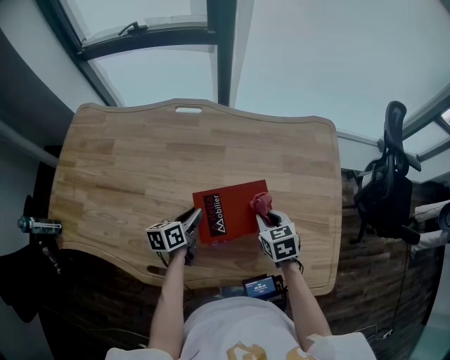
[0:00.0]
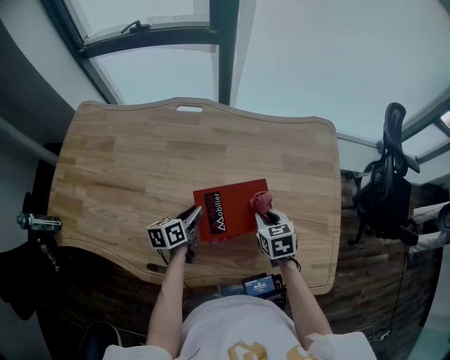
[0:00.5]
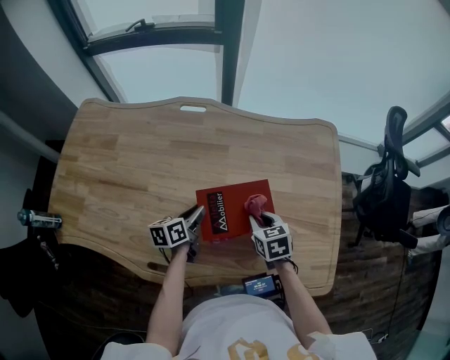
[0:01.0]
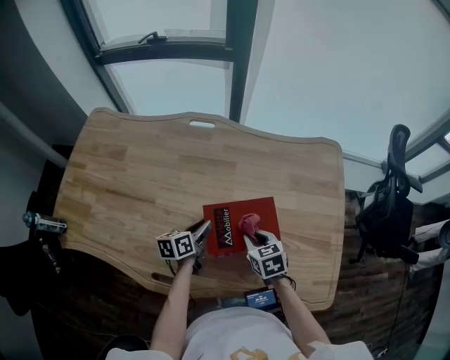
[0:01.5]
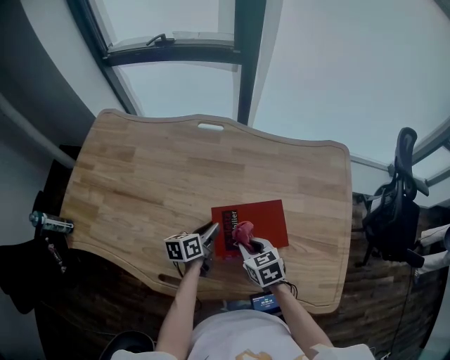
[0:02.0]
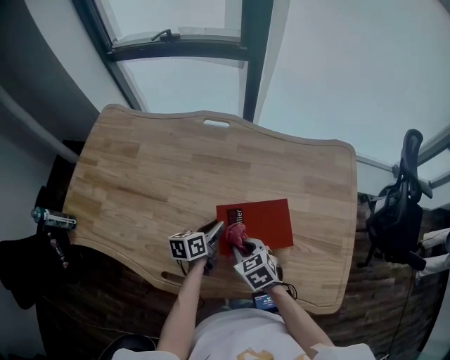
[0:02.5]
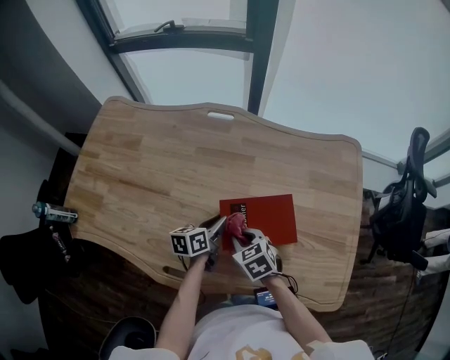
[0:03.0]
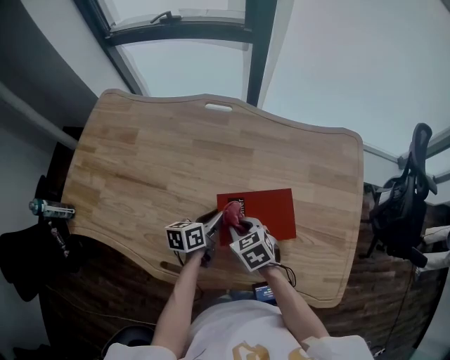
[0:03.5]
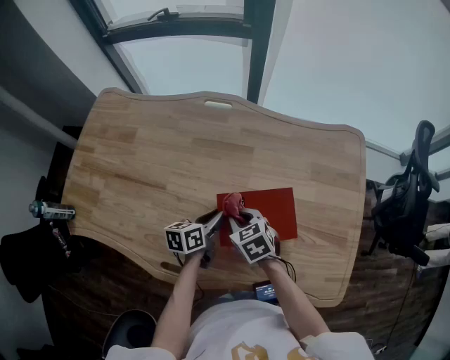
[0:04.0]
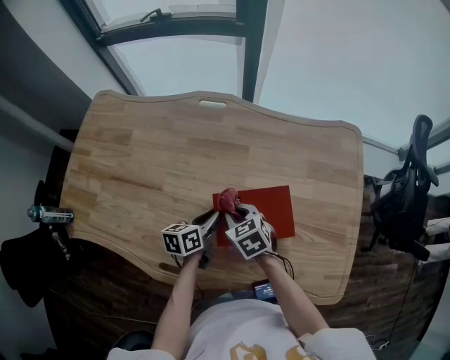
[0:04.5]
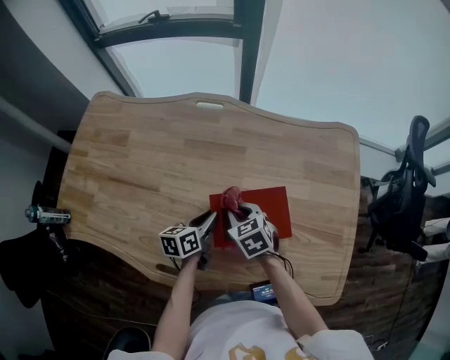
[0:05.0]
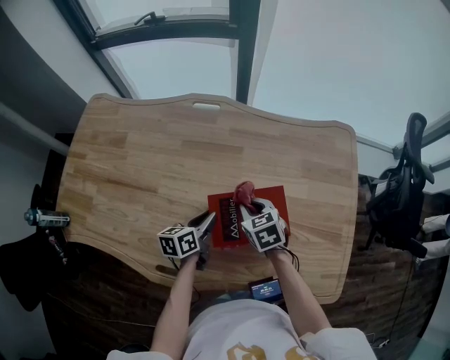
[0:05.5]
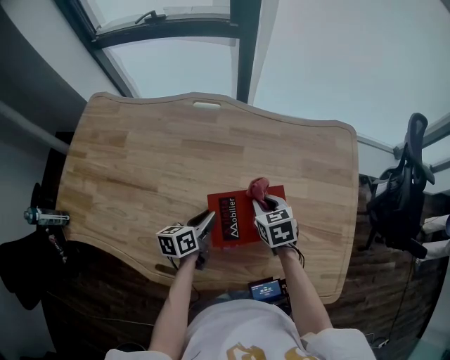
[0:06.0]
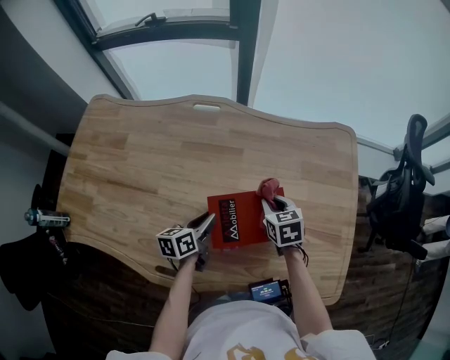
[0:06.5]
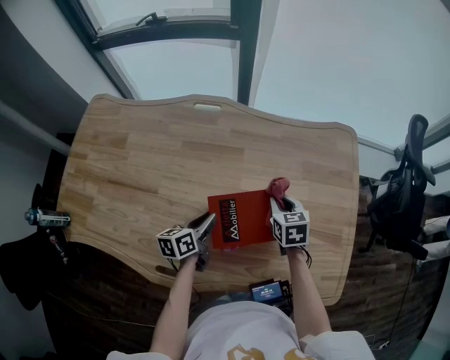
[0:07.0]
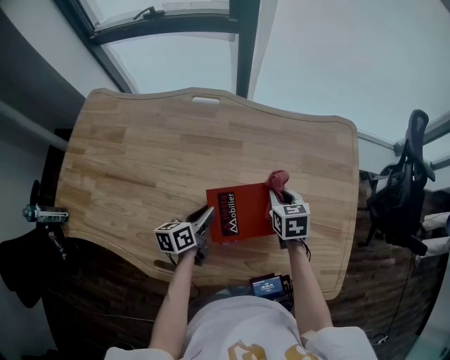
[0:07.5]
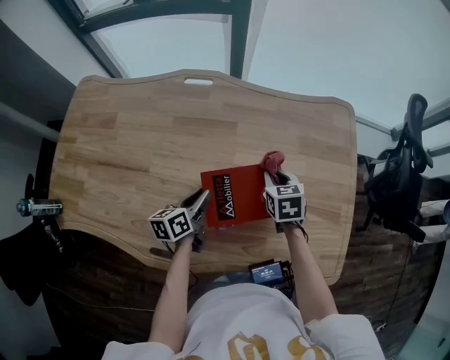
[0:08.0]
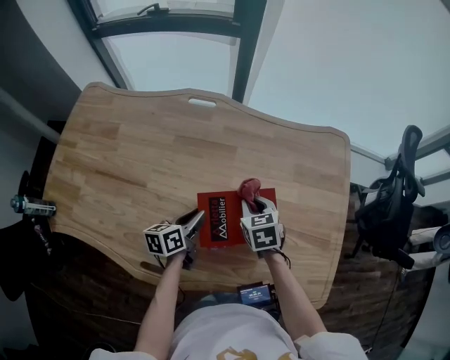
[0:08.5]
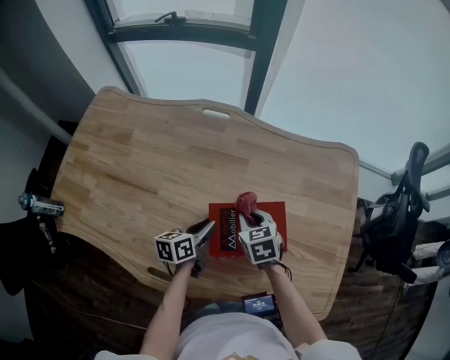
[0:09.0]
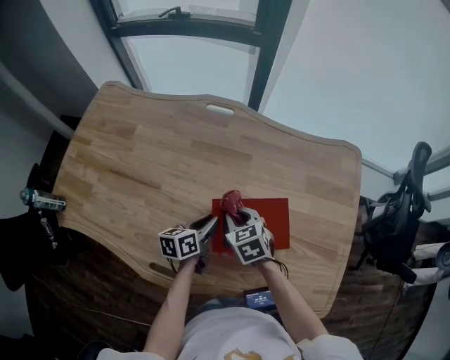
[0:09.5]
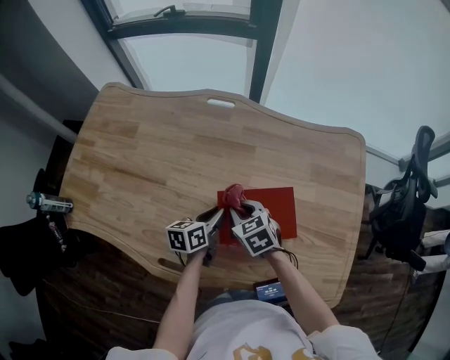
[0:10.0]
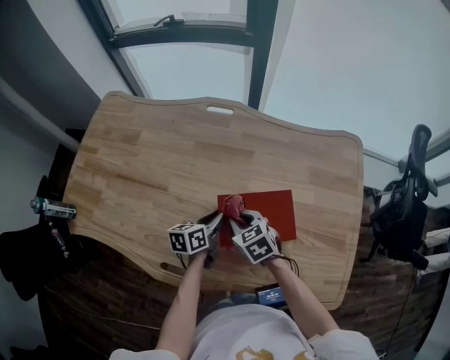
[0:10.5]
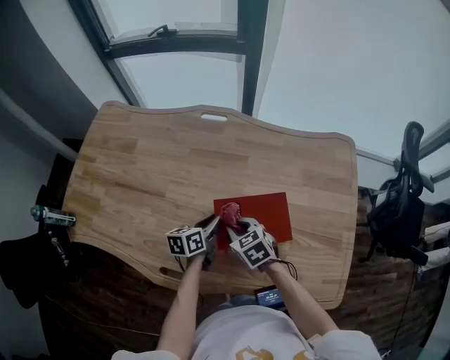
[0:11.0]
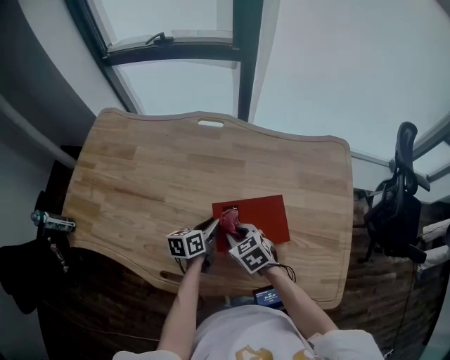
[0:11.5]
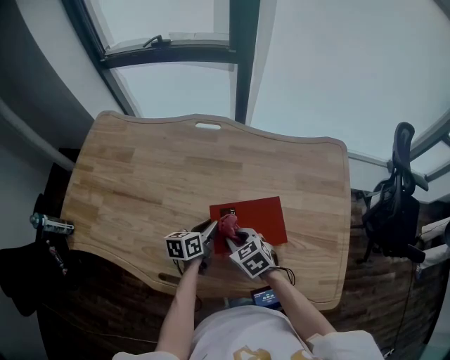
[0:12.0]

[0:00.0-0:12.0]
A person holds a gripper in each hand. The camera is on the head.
0:00.0 to 0:02.0: The right gripper shifts about 10 cm to the left.
0:02.0 to 0:04.0: The right gripper travels forward and to the left by approximately 5 cm.
0:04.0 to 0:06.0: The right gripper is displaced to the right and forward by about 10 cm.
0:06.0 to 0:08.0: The right gripper heads to the right, covering some 5 cm.
0:08.0 to 0:10.0: The right gripper shifts approximately 15 cm to the left, and rotates about 30 degrees.
0:10.0 to 0:12.0: The right gripper moves backward, some 5 cm.

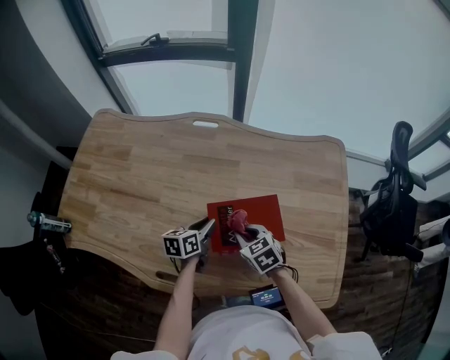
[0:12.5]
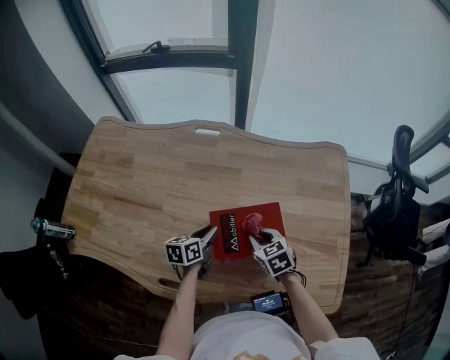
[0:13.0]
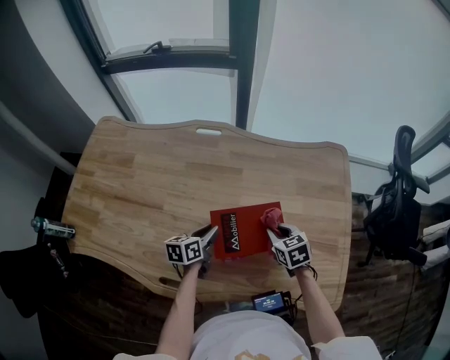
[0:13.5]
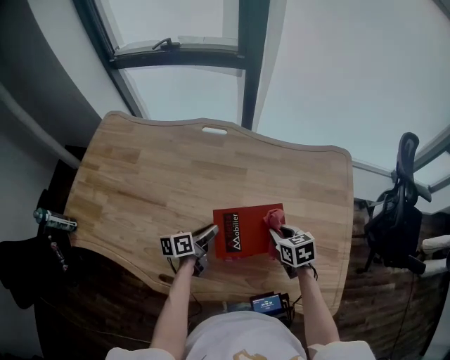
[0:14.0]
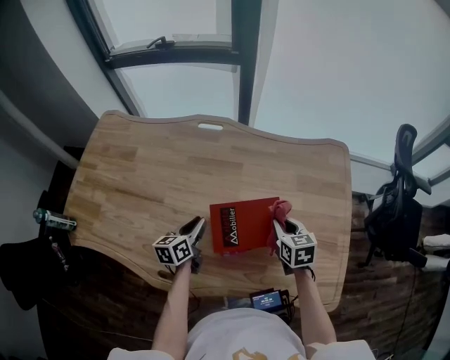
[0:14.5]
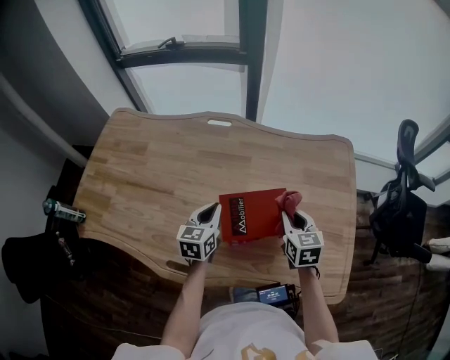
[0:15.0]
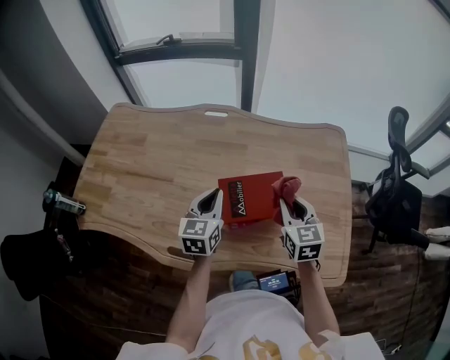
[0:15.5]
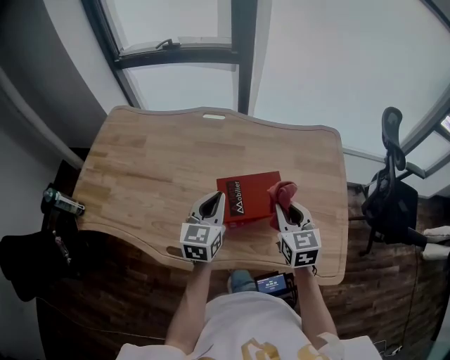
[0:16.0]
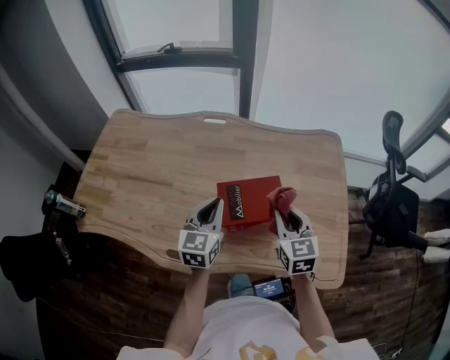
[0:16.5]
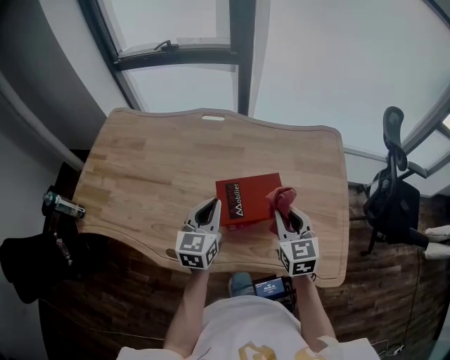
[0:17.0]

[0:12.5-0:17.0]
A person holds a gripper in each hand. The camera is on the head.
0:12.5 to 0:14.5: The right gripper shifts approximately 15 cm to the right, and changes its angle by about 30 degrees.
0:14.5 to 0:17.0: Both grippers travel together upward and backward, some 15 cm. The left gripper turns by roughly 30 degrees. The right gripper swivels roughly 20 degrees.

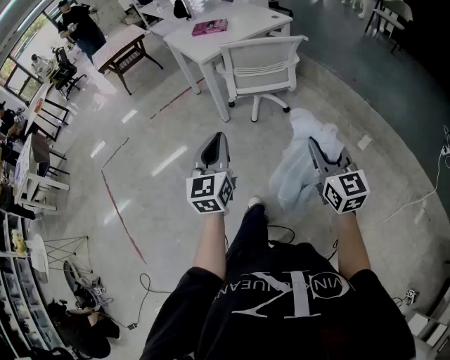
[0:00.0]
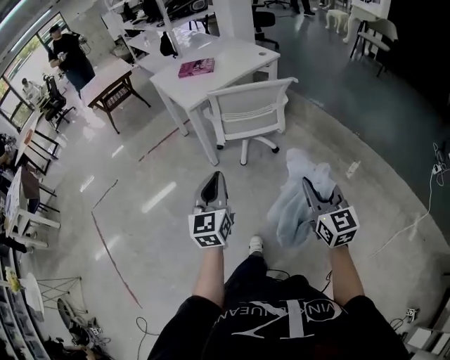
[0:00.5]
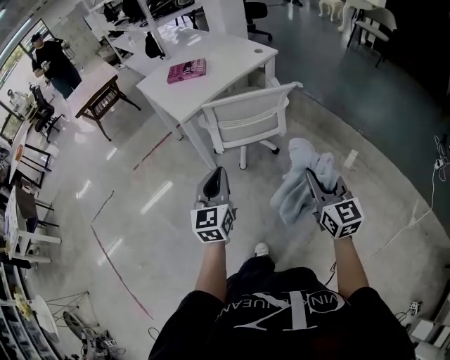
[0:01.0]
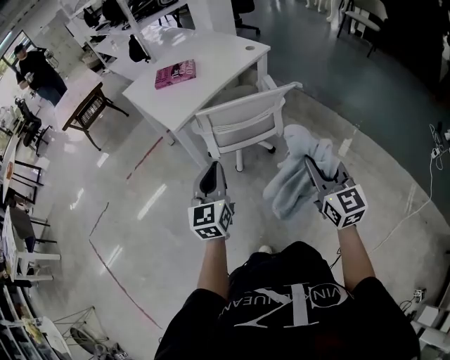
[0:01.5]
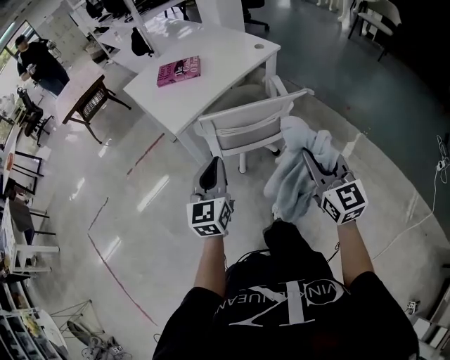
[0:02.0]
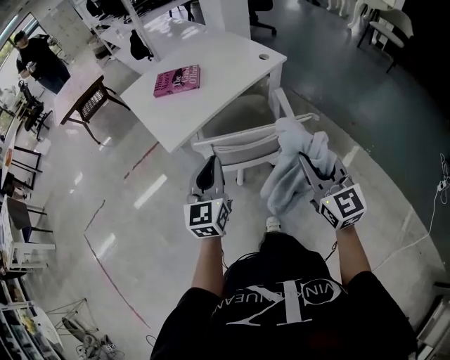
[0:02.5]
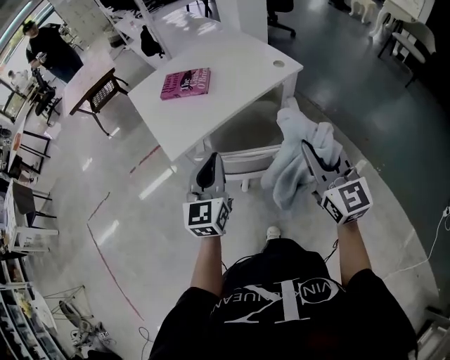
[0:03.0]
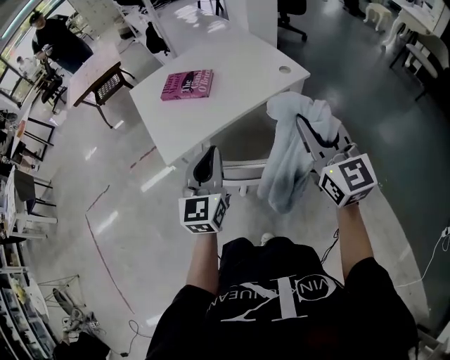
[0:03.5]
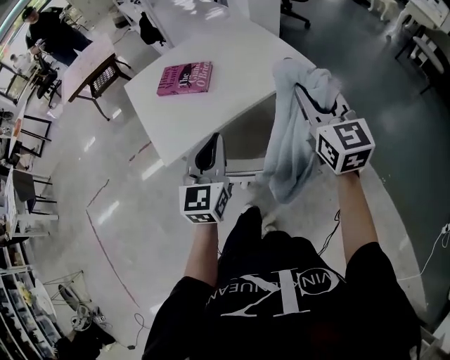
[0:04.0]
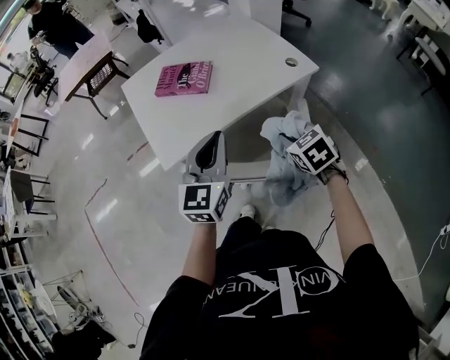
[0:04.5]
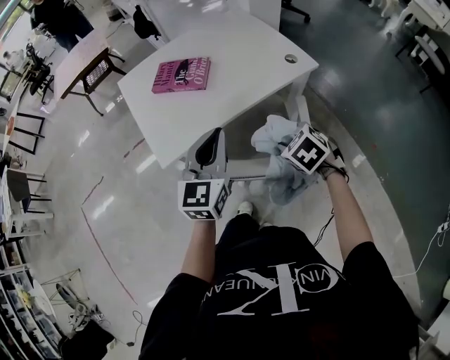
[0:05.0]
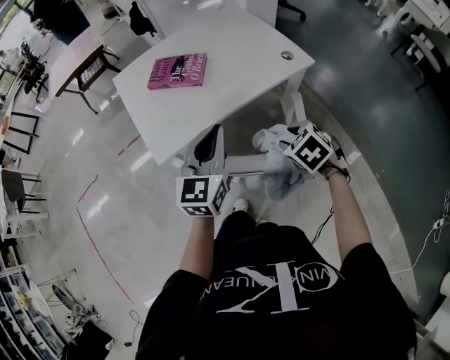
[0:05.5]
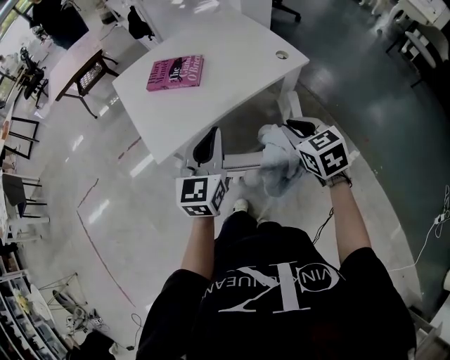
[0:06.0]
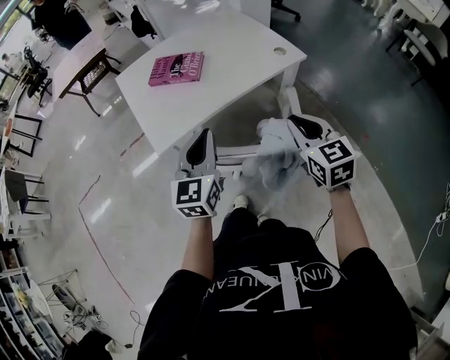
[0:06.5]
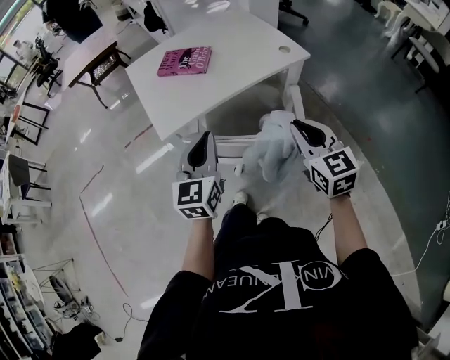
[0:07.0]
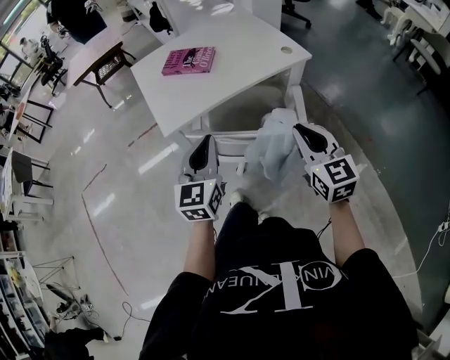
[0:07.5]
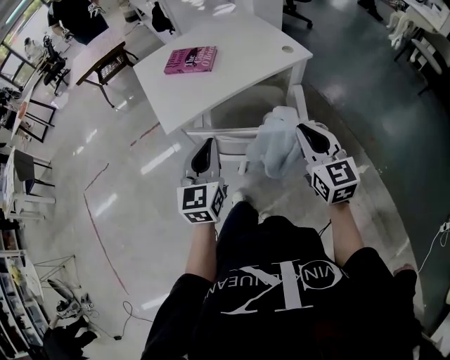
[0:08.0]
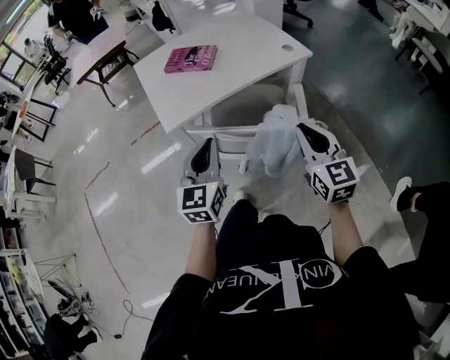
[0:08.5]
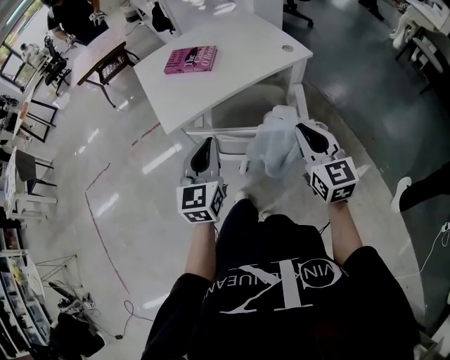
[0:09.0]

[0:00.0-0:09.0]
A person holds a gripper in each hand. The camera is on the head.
0:00.0 to 0:02.0: The two grippers go about 35 cm forward.
0:02.0 to 0:04.5: The grippers both shift forward by approximately 35 cm. The right gripper tilts its fingers some 40 degrees downward.
0:04.5 to 0:07.0: The right gripper heads backward and upward, covering roughly 15 cm, angles its fingers upward, by about 30 degrees, and opens and closes again; the left gripper moves backward, about 10 cm.
0:07.0 to 0:09.0: The grippers make only small movements.

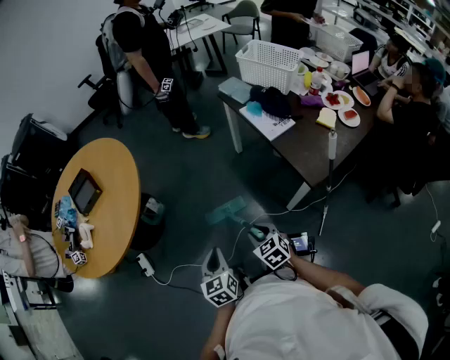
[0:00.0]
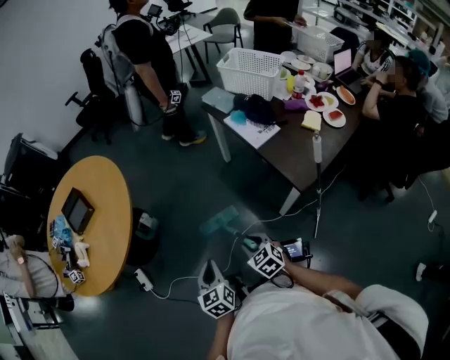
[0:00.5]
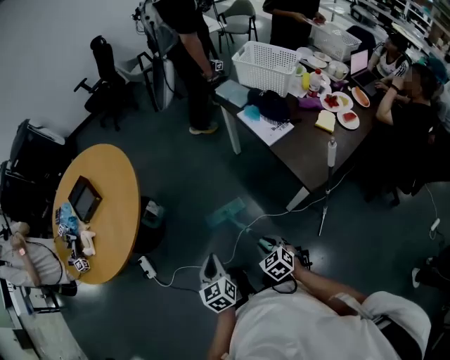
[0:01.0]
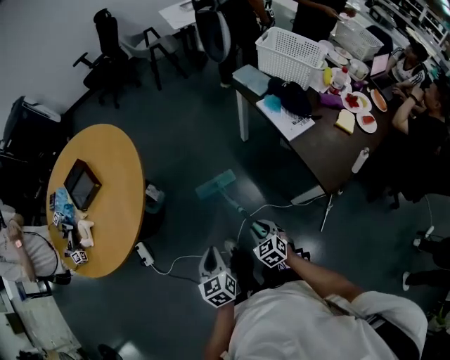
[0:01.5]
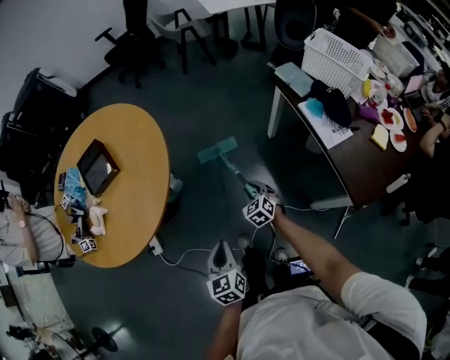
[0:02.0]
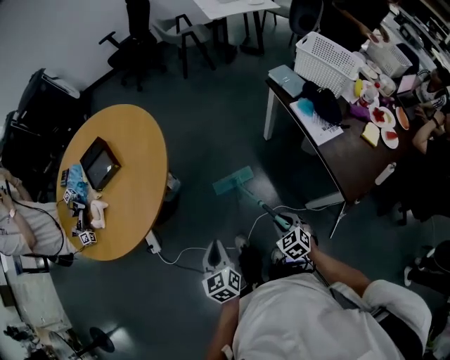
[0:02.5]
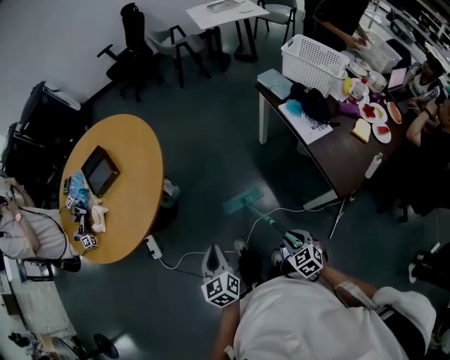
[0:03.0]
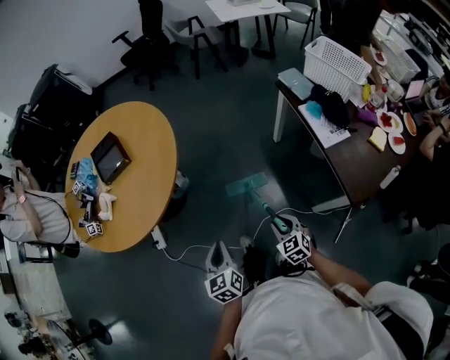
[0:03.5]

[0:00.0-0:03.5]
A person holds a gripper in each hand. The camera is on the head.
0:00.0 to 0:02.0: The left gripper travels forward and to the left by approximately 15 cm. The right gripper goes approximately 30 cm forward.
0:02.0 to 0:03.5: The right gripper moves backward, roughly 20 cm, while the left gripper travels backward by about 5 cm.
